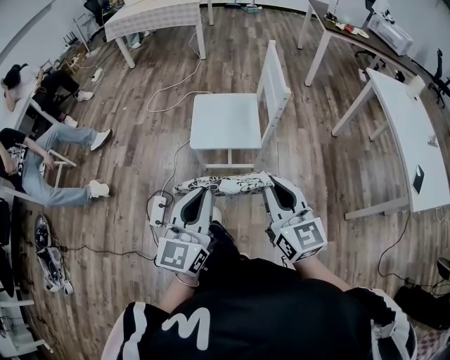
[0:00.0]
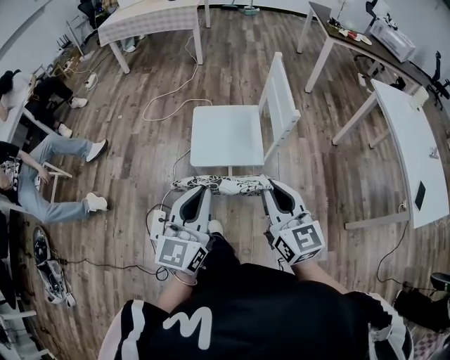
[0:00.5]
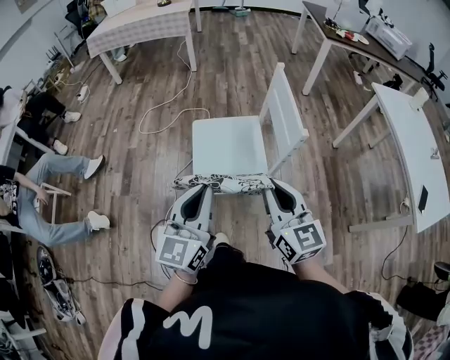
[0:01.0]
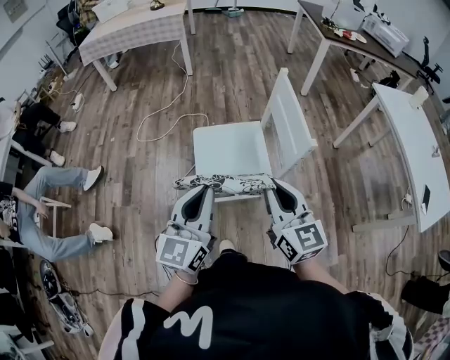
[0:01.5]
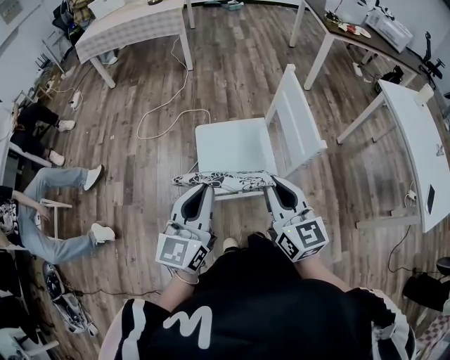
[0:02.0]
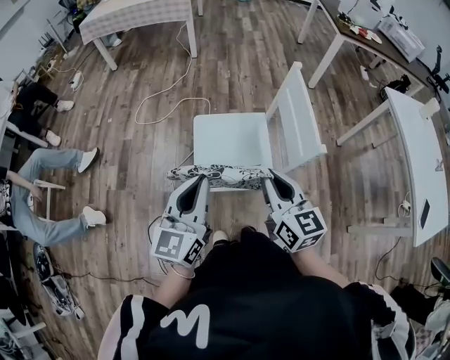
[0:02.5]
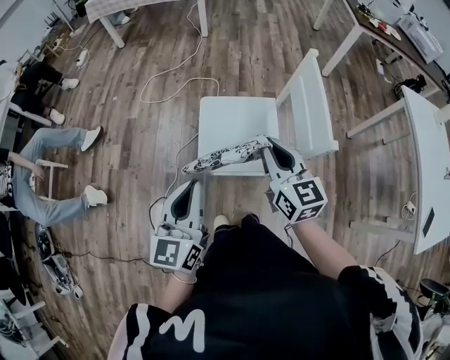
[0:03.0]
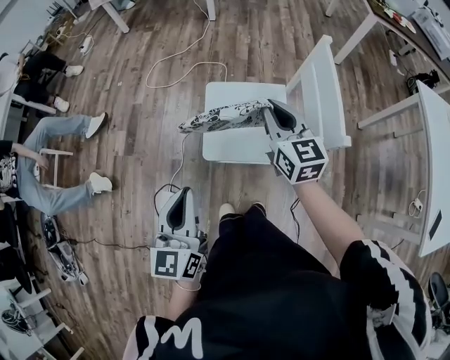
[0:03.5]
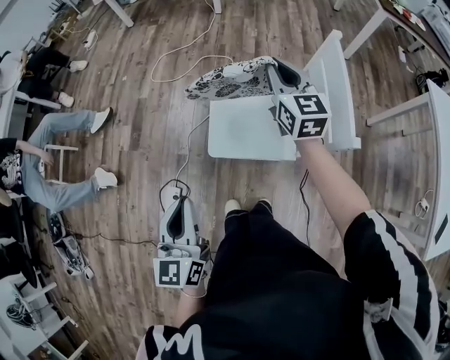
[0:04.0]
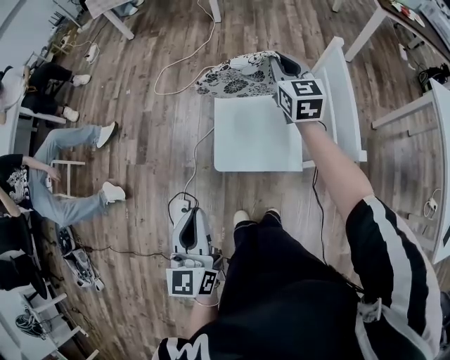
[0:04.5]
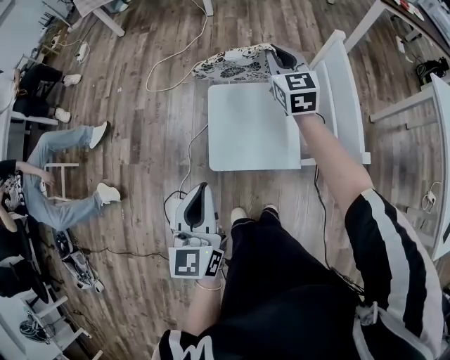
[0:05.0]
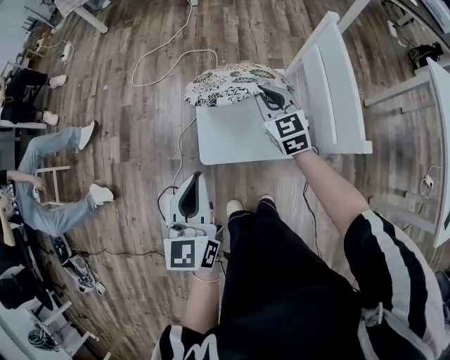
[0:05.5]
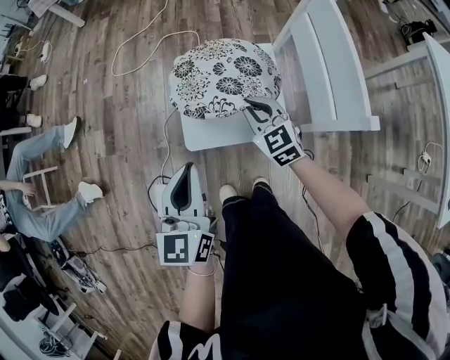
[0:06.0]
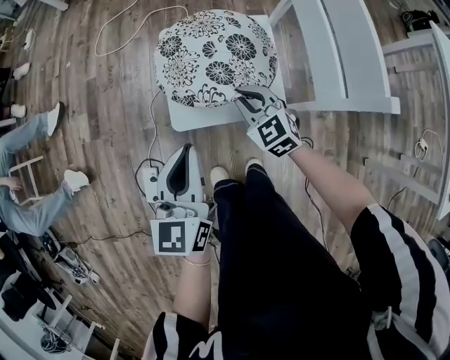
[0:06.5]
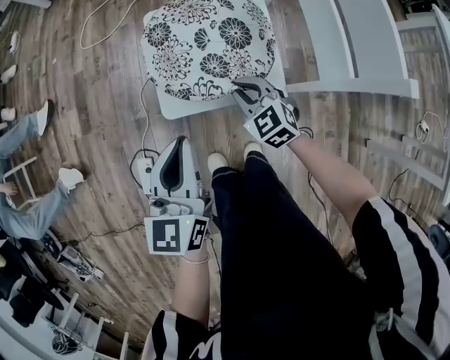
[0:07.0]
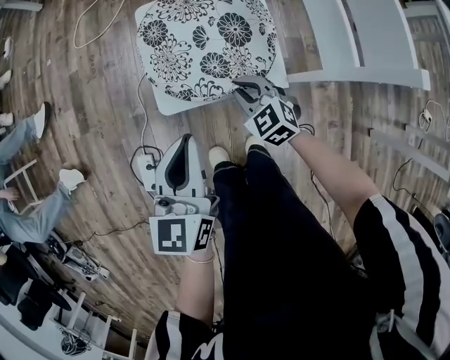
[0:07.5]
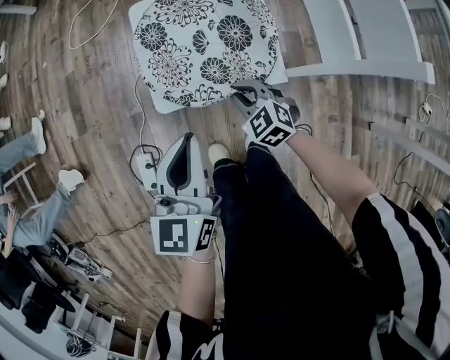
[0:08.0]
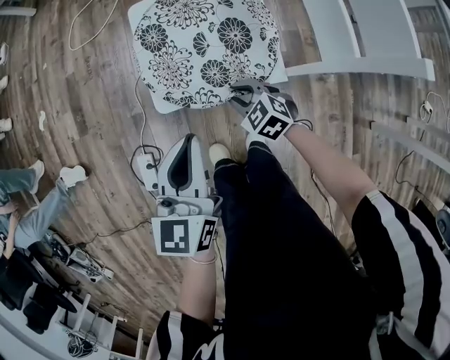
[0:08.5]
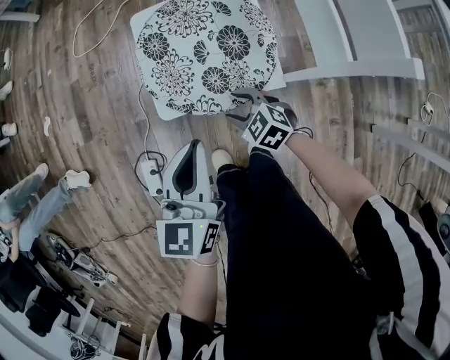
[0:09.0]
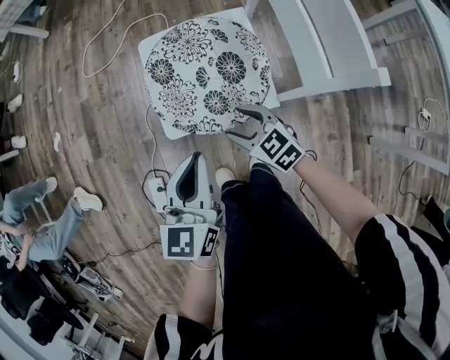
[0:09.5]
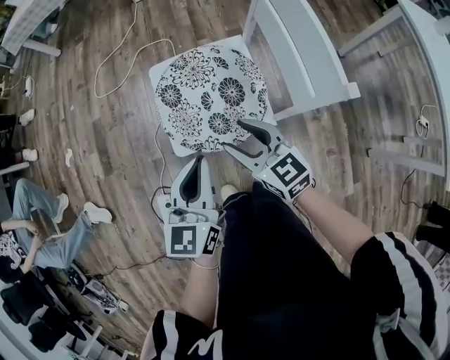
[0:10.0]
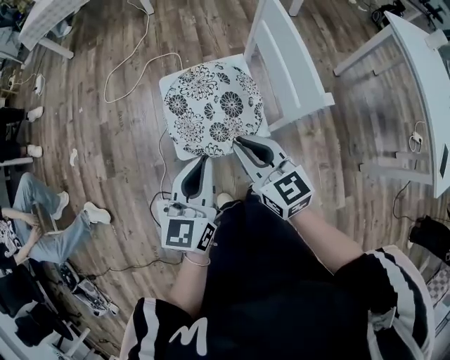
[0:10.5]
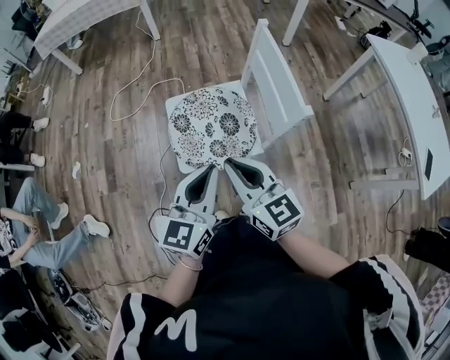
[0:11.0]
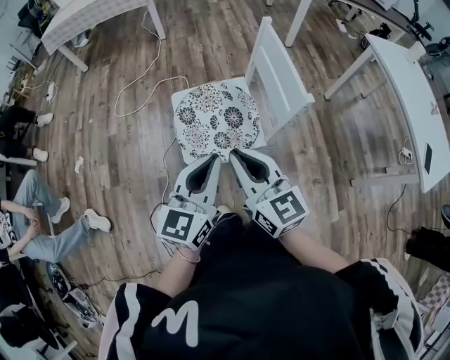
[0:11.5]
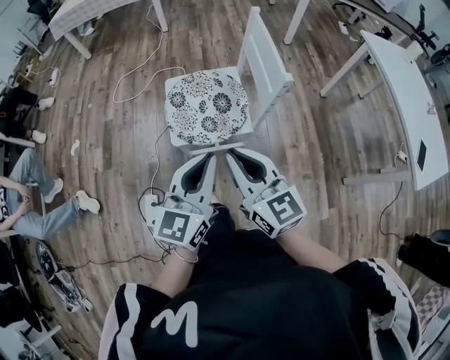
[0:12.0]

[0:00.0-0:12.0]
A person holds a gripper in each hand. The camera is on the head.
0:00.0 to 0:02.0: Both grippers move forward, about 25 cm.
0:02.0 to 0:04.0: The right gripper shifts some 25 cm forward. The left gripper shifts approximately 10 cm to the left and downward, and changes its angle by some 30 degrees.
0:04.0 to 0:06.0: The right gripper goes about 25 cm downward, and rotates approximately 30 degrees, while the left gripper shifts some 15 cm downward, forward and to the right.
0:06.0 to 0:08.0: The right gripper goes roughly 20 cm downward and backward, and changes its angle by roughly 20 degrees, while the left gripper heads downward, covering some 10 cm.
0:08.0 to 0:10.0: The right gripper moves upward, some 25 cm, rotates some 40 degrees, and opens its fingers; the left gripper heads upward, covering roughly 10 cm.
0:10.0 to 0:12.0: Both grippers travel together upward and backward, some 25 cm. The right gripper closes.

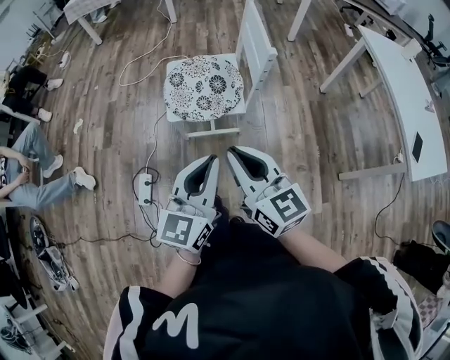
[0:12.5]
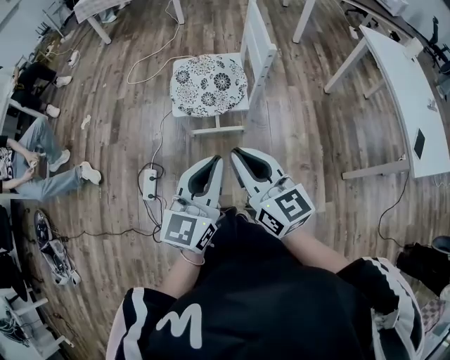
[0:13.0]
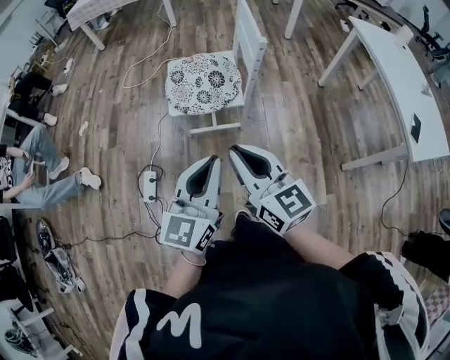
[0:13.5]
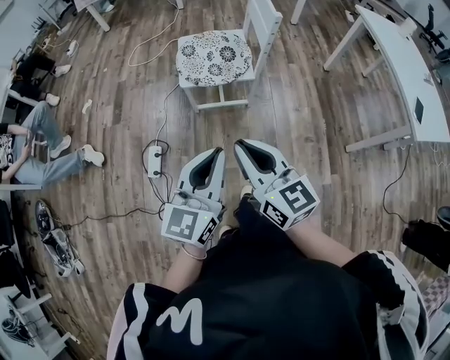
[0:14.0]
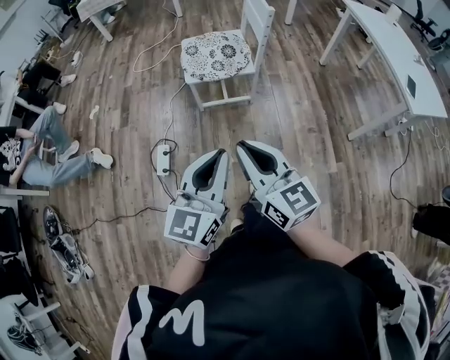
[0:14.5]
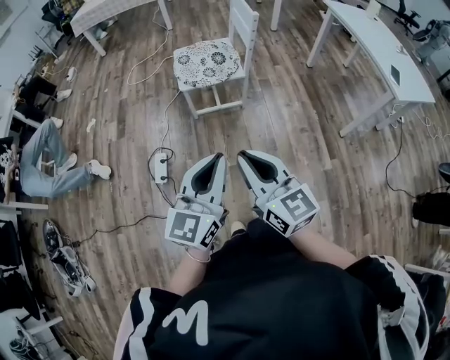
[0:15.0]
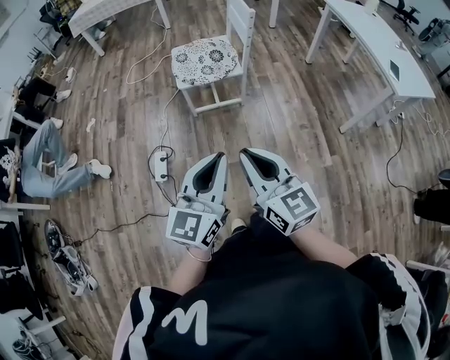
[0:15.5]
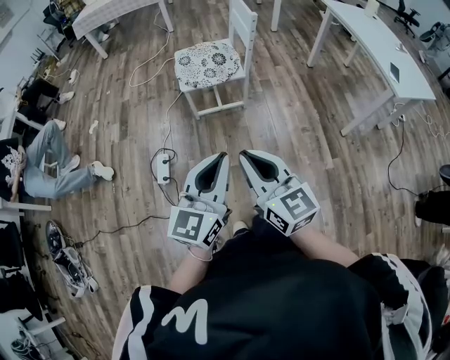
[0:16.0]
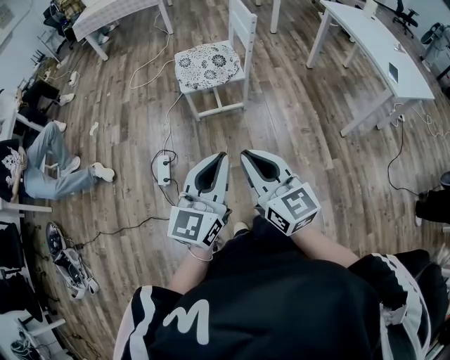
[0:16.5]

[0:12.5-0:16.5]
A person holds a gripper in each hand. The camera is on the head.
0:12.5 to 0:14.5: The two grippers go about 25 cm backward.
0:14.5 to 0:16.5: The two grippers go roughly 5 cm backward.

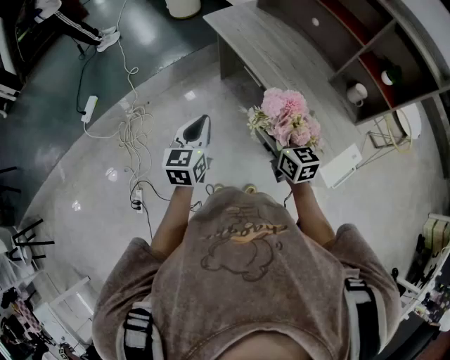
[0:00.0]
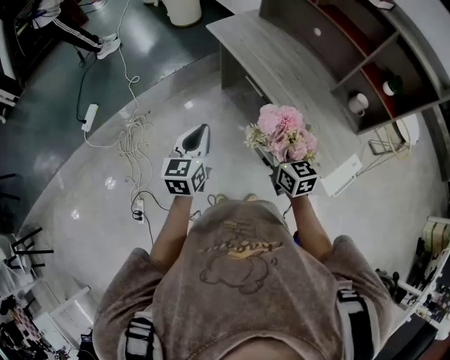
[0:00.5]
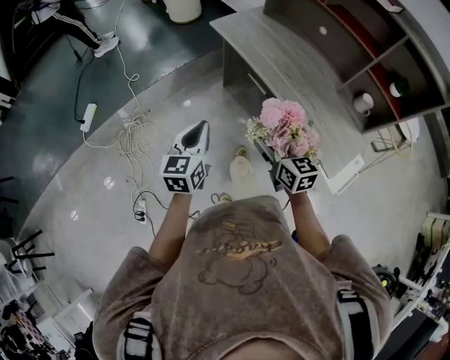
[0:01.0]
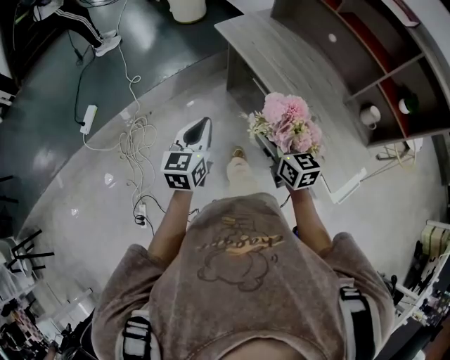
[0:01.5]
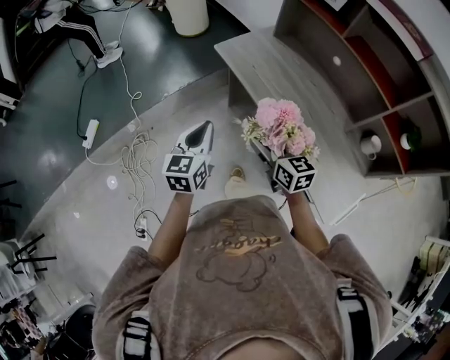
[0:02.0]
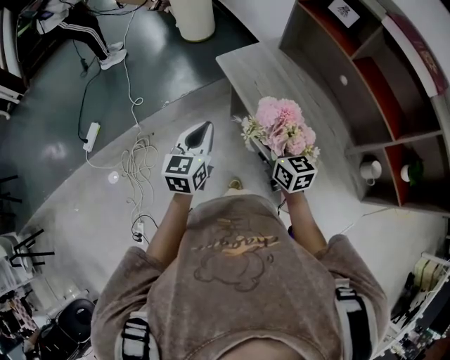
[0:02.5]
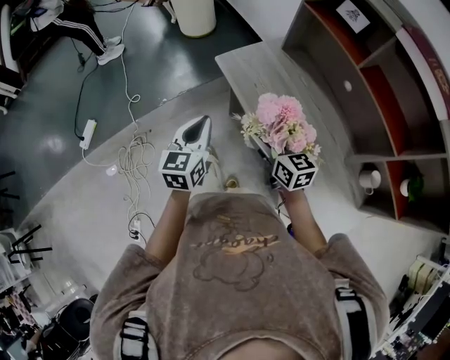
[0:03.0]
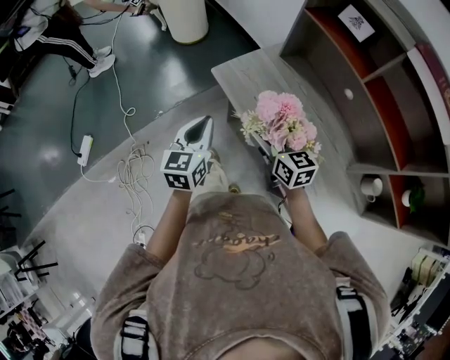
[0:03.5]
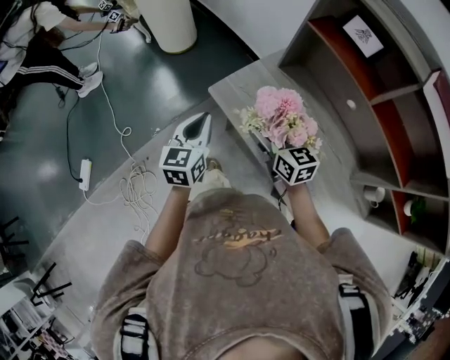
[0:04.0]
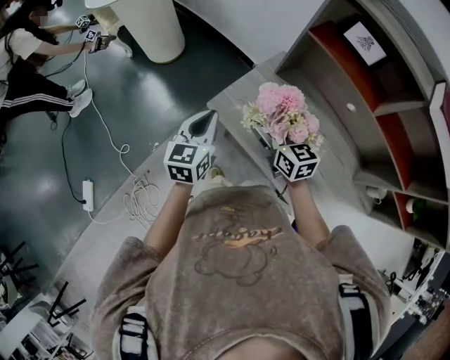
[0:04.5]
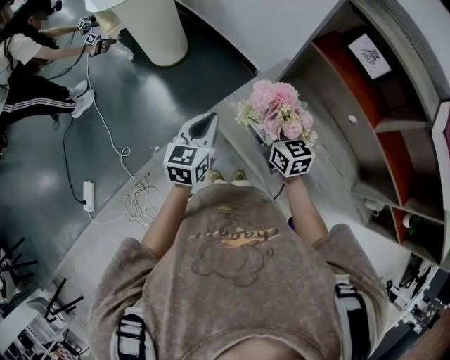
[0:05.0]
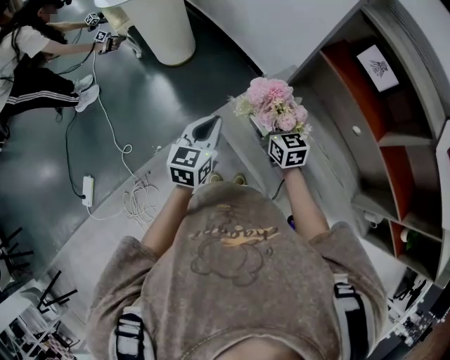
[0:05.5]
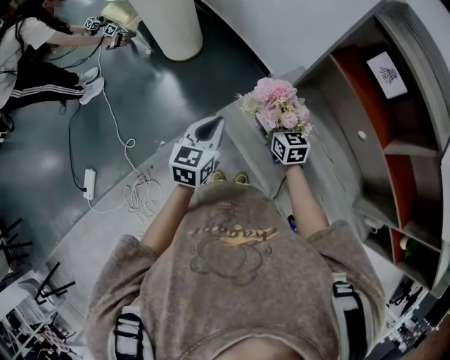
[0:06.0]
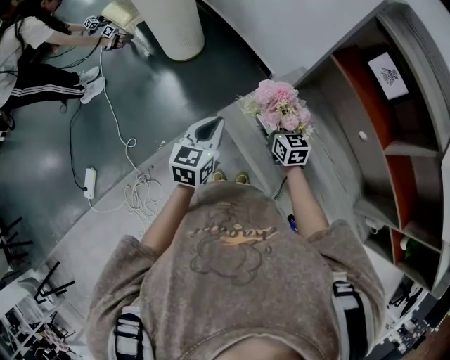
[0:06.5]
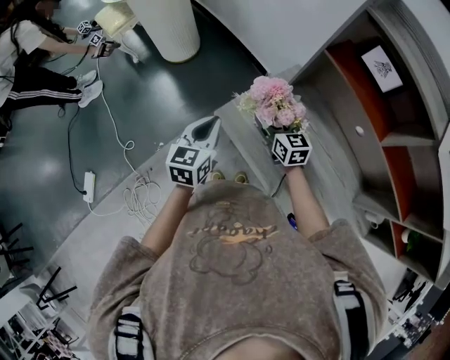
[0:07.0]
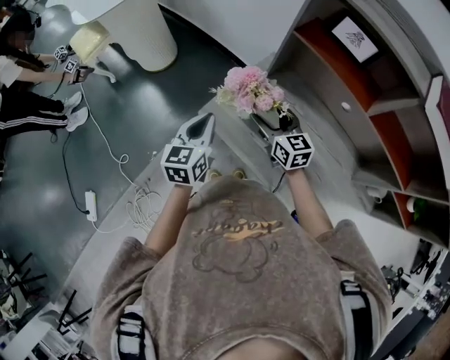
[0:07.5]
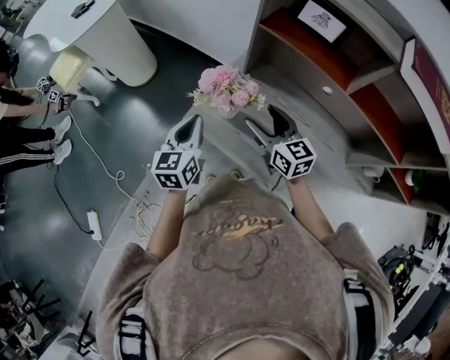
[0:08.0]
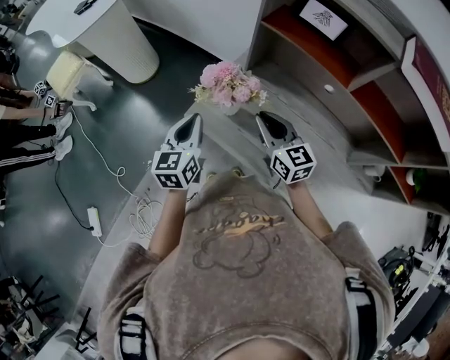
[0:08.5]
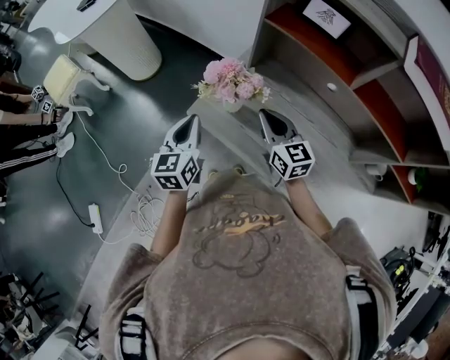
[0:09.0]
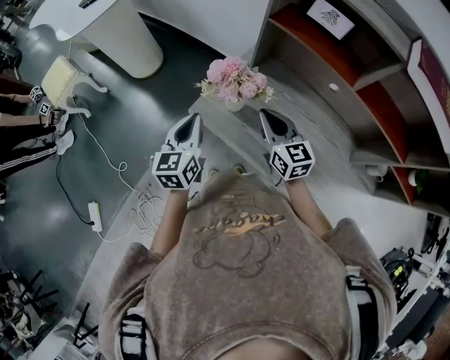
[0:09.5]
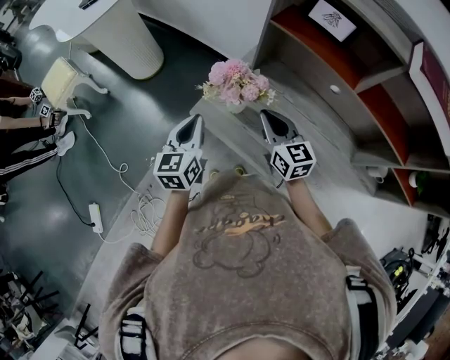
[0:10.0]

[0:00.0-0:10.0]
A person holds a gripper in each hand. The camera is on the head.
0:00.0 to 0:02.0: The two grippers go about 25 cm forward.
0:02.0 to 0:04.0: The two grippers go roughly 35 cm forward.
0:04.0 to 0:06.0: The right gripper travels forward and downward by about 20 cm; the left gripper is displaced forward by approximately 10 cm.
0:06.0 to 0:08.0: The left gripper moves about 5 cm, while the right gripper heads backward, upward and to the right, covering about 15 cm.
0:08.0 to 0:10.0: The right gripper closes.

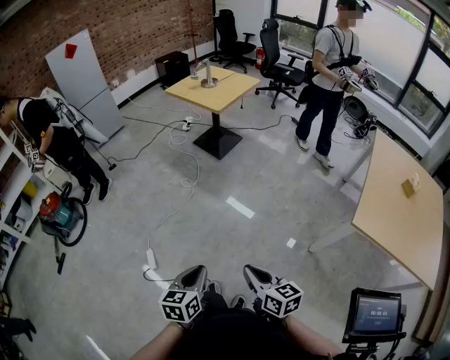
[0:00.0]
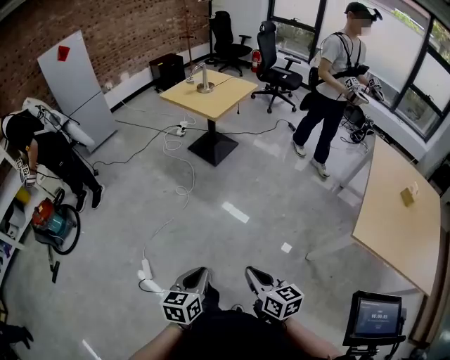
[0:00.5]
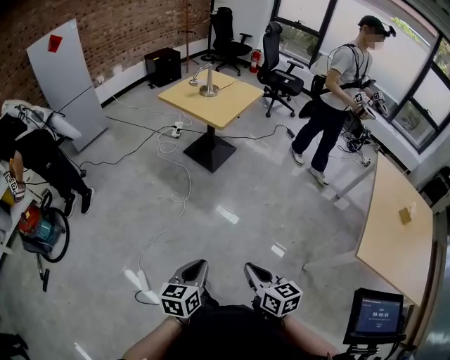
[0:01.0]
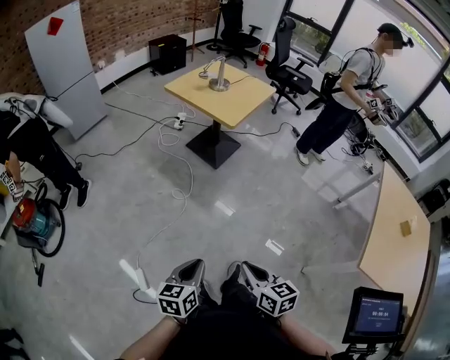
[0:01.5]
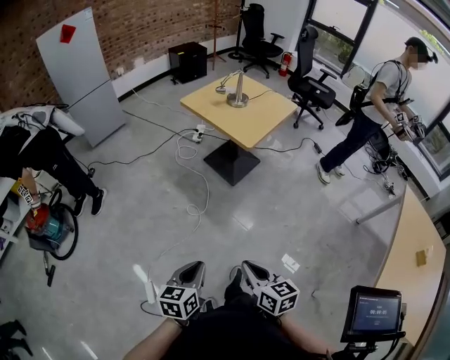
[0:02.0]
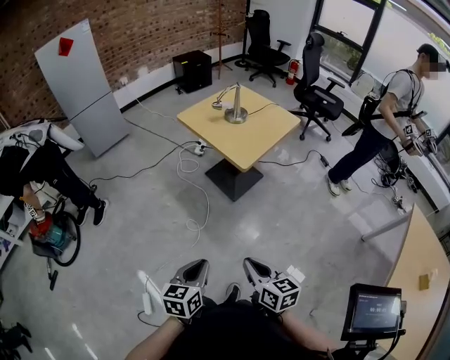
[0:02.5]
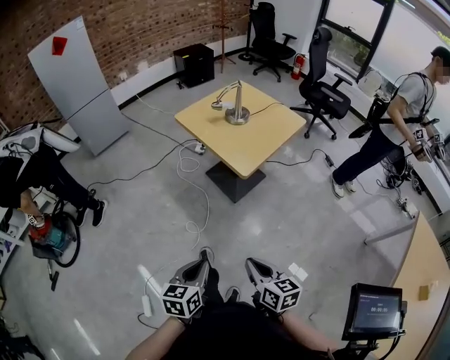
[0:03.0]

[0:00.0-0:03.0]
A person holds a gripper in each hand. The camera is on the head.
0:00.0 to 0:01.5: The grippers both shift forward by roughly 25 cm.
0:01.5 to 0:03.0: Both grippers move forward, approximately 30 cm.
